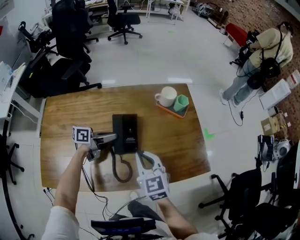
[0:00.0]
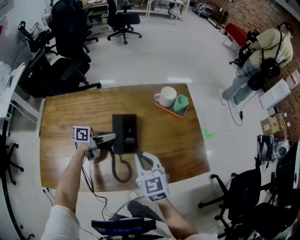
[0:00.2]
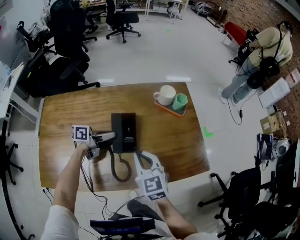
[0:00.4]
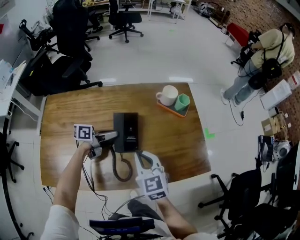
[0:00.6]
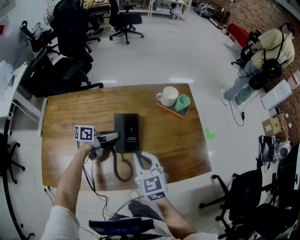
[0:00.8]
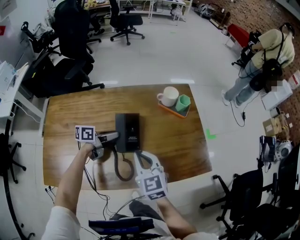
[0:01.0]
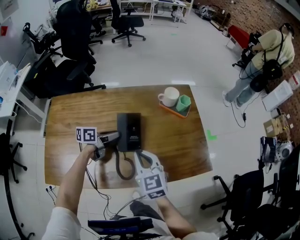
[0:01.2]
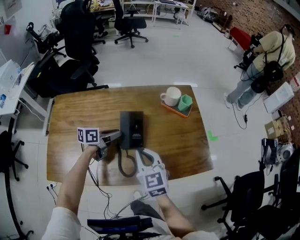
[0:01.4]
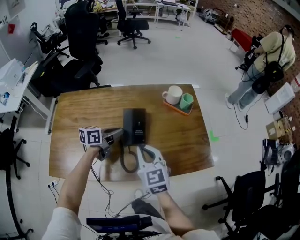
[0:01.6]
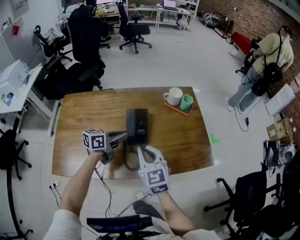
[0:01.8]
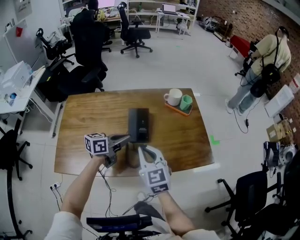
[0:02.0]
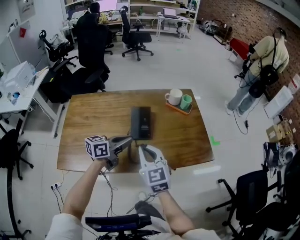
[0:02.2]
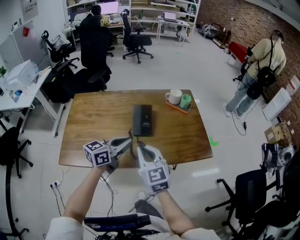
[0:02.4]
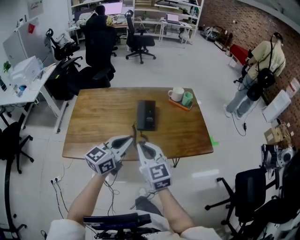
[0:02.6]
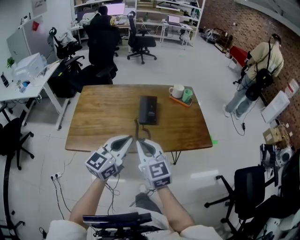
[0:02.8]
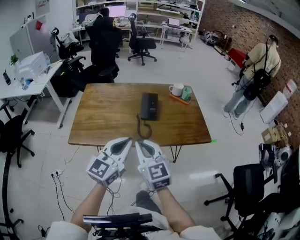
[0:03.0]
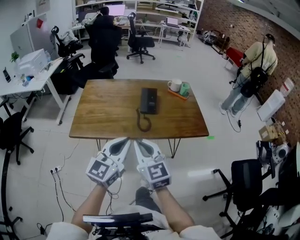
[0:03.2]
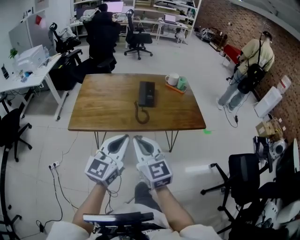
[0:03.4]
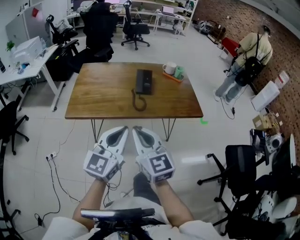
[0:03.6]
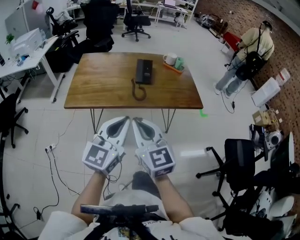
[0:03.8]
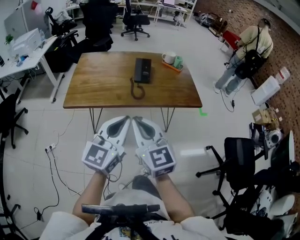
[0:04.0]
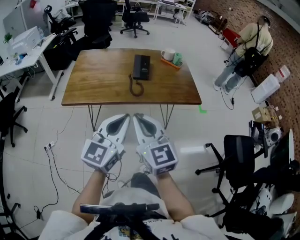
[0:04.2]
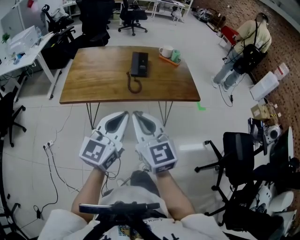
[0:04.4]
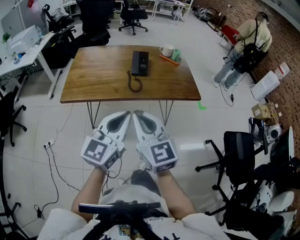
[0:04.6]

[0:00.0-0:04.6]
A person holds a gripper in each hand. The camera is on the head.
0:00.0 to 0:01.6: The left gripper changes place by some 5 cm.
0:01.6 to 0:03.0: The left gripper is displaced backward and upward by roughly 40 cm, and rolls clockwise, seen from behind, by some 40 degrees. The right gripper goes about 25 cm backward.
0:03.0 to 0:04.6: Both grippers travel together backward, about 15 cm.

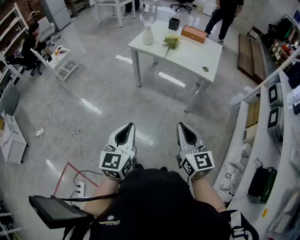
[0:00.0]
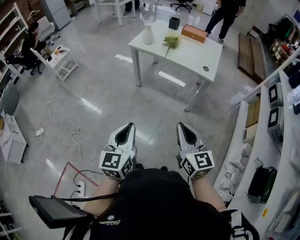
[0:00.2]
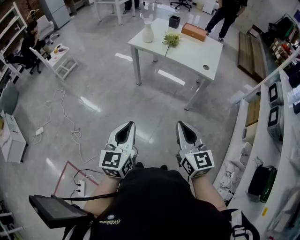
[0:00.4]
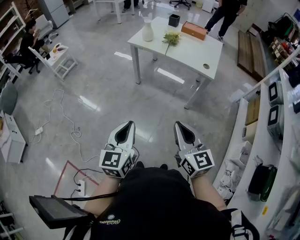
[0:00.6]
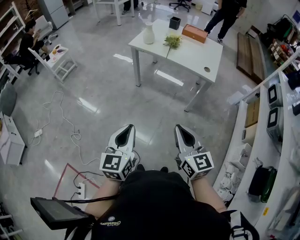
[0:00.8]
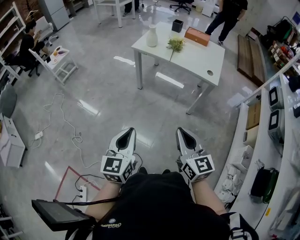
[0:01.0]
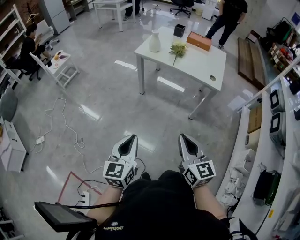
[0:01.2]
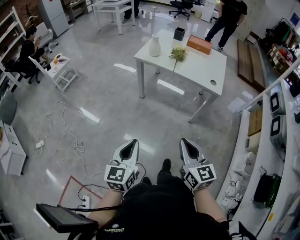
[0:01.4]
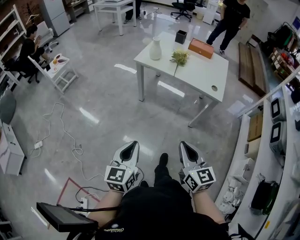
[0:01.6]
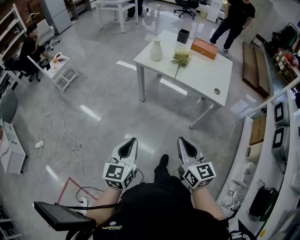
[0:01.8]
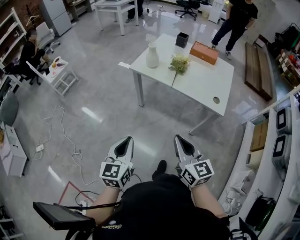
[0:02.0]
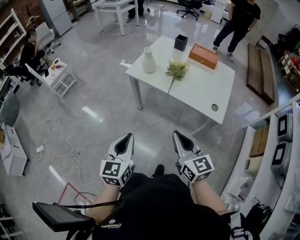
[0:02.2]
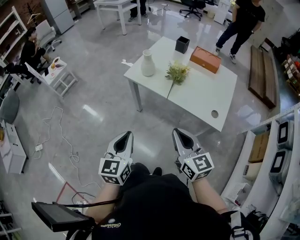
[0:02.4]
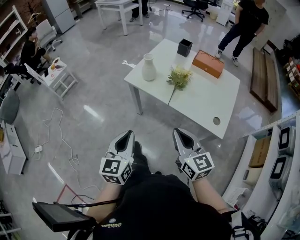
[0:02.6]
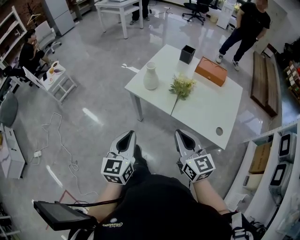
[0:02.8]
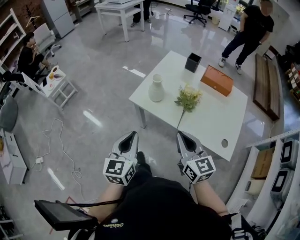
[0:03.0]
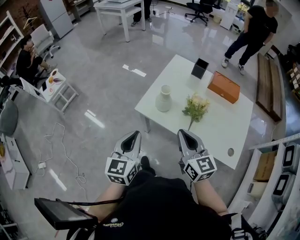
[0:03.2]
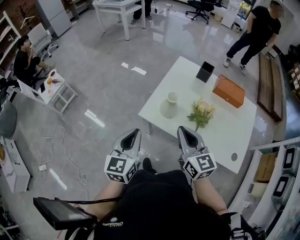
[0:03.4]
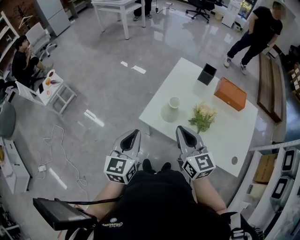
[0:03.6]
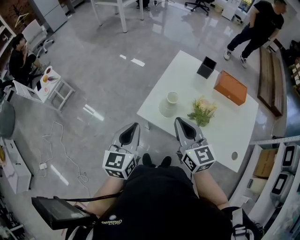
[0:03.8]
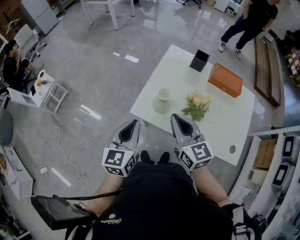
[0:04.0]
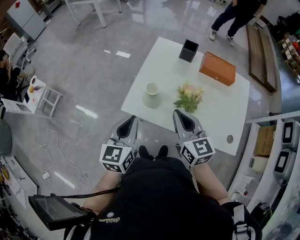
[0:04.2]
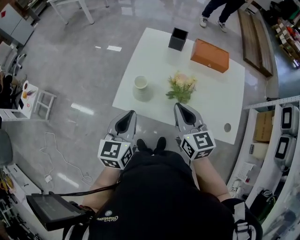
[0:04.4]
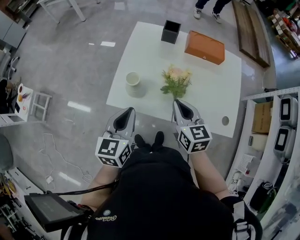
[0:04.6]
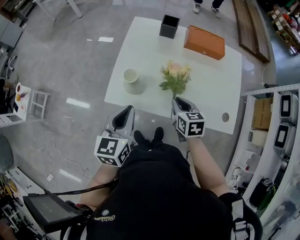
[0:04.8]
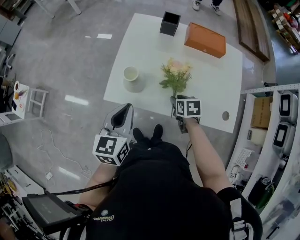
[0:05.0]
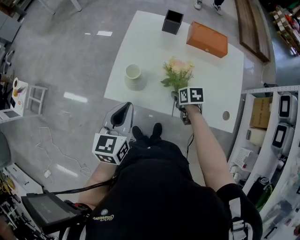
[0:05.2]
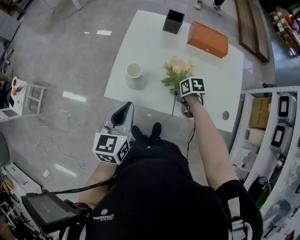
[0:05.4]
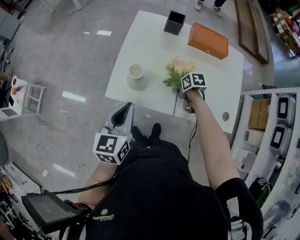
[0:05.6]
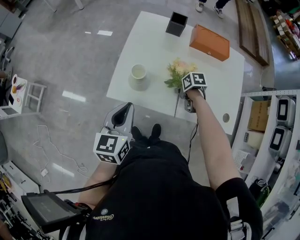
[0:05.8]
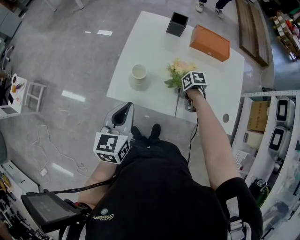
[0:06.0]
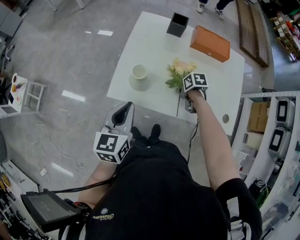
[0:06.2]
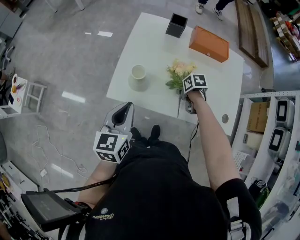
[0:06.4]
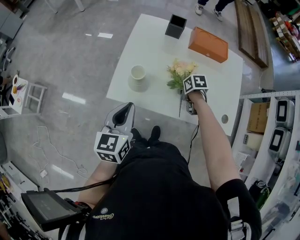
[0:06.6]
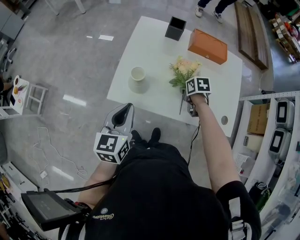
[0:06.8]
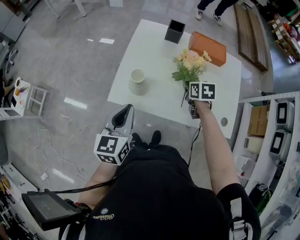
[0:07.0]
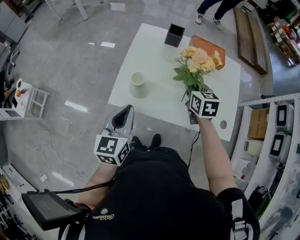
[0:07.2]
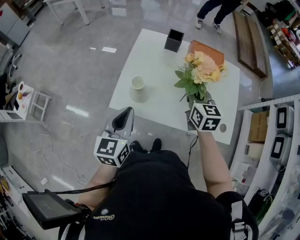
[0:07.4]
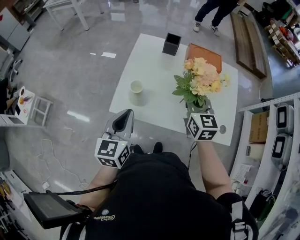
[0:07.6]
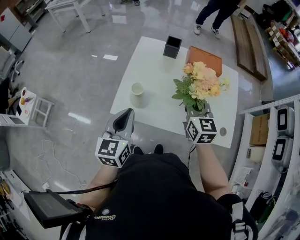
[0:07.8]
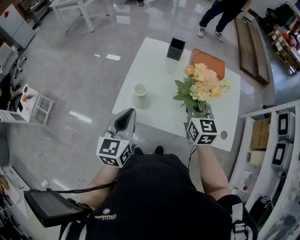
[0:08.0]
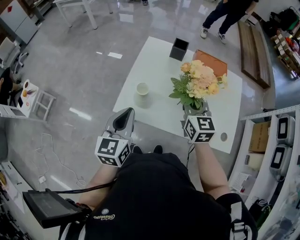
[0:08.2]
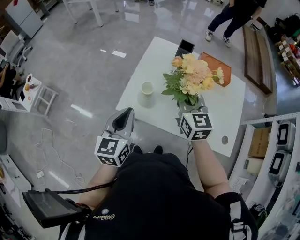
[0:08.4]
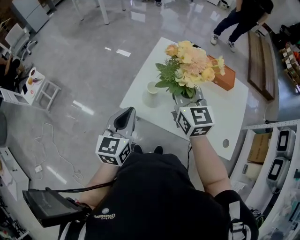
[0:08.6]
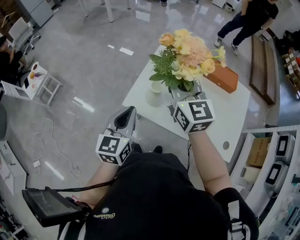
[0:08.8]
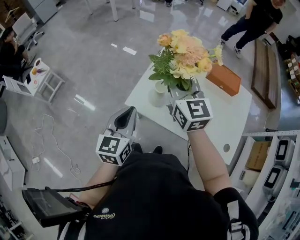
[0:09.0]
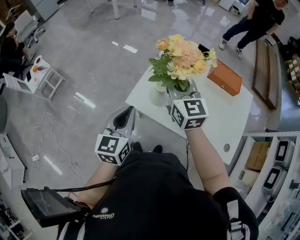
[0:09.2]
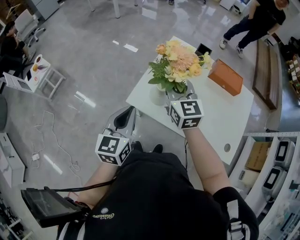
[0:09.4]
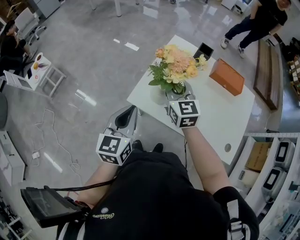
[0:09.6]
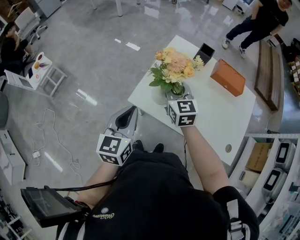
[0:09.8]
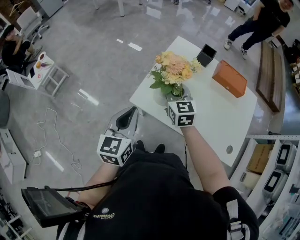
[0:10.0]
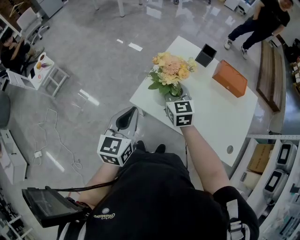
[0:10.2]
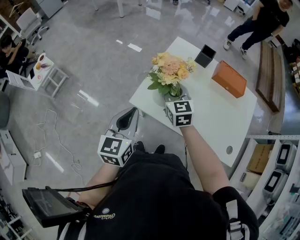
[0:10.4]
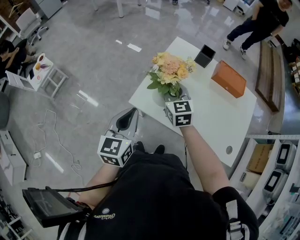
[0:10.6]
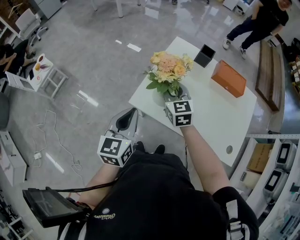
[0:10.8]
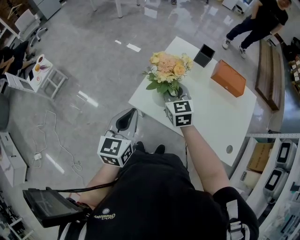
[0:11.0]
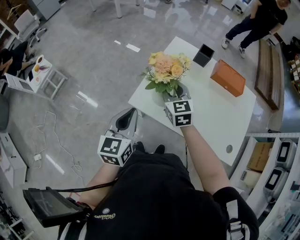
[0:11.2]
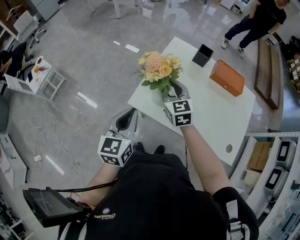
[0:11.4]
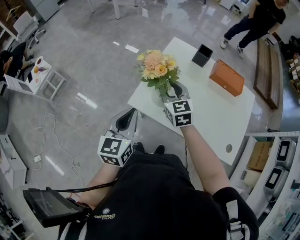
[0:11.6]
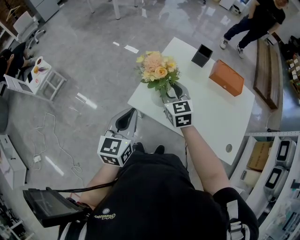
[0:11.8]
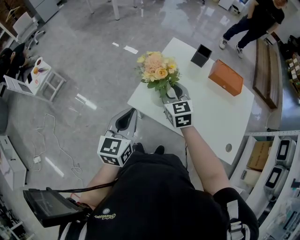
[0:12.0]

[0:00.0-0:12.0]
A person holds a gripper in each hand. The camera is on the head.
0:00.0 to 0:01.6: The grippers both shift forward and to the left by roughly 10 cm.
0:01.6 to 0:03.0: Both grippers are carried forward, roughly 50 cm.
0:03.0 to 0:04.4: The grippers both shift forward by some 20 cm.
0:04.4 to 0:06.0: The right gripper travels downward by about 25 cm, angles its fingers downward, by approximately 50 degrees, and opens and closes again.
0:06.0 to 0:07.6: The right gripper moves upward, roughly 25 cm, and angles its fingers upward, by roughly 50 degrees.
0:07.6 to 0:09.0: The left gripper travels to the left by some 5 cm, while the right gripper travels to the left and upward by roughly 20 cm, and rotates approximately 30 degrees.
0:09.0 to 0:10.4: The right gripper is displaced downward by approximately 15 cm.
0:10.4 to 0:12.0: The right gripper opens up.

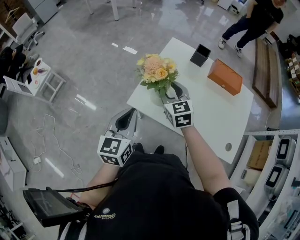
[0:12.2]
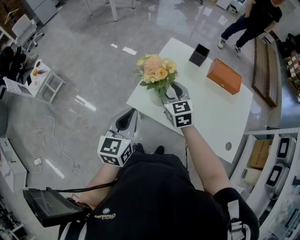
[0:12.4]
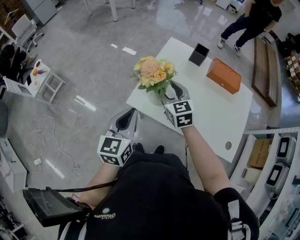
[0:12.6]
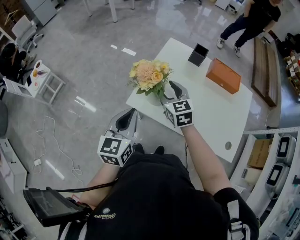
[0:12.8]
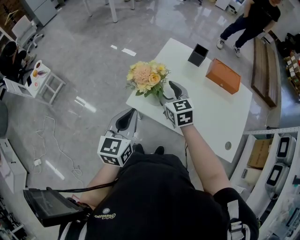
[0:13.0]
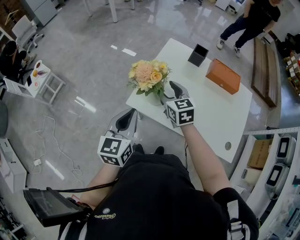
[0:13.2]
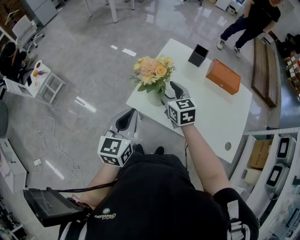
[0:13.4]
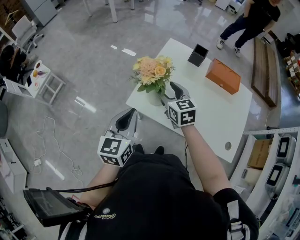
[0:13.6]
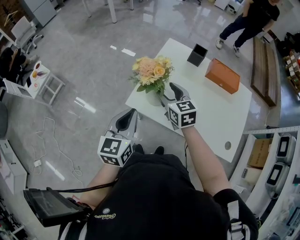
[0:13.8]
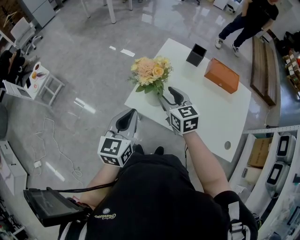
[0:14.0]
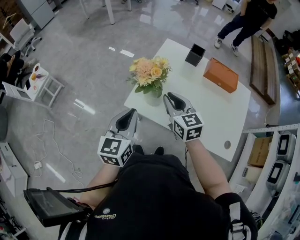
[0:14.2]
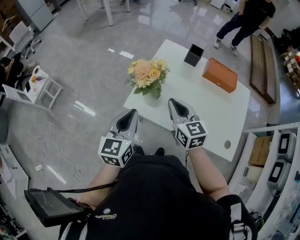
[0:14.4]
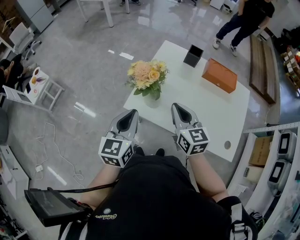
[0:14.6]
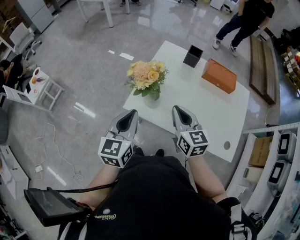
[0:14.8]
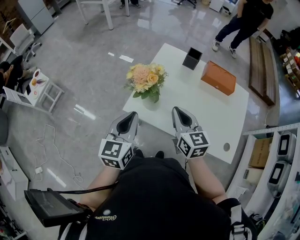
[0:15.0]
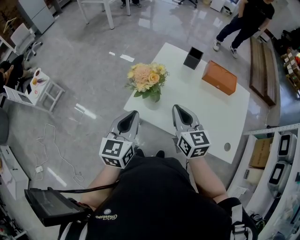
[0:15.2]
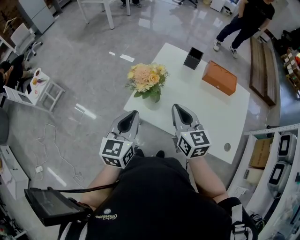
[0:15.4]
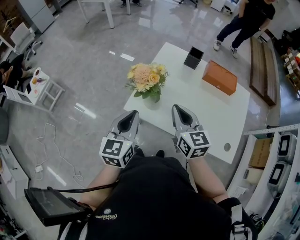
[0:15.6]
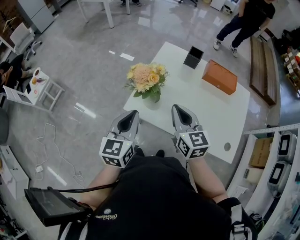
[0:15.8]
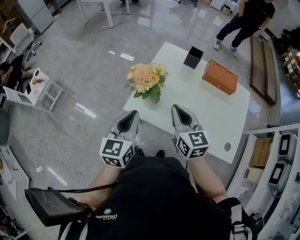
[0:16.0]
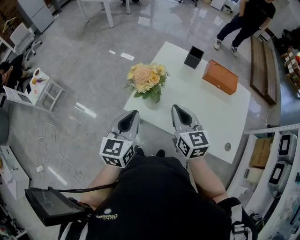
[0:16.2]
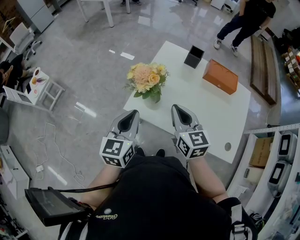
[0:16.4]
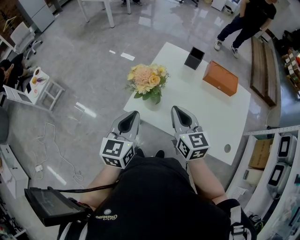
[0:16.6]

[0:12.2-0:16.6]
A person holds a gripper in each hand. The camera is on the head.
0:12.2 to 0:13.6: The grippers make only small movements.
0:13.6 to 0:15.2: The right gripper shifts approximately 10 cm backward, upward and to the right, and closes up.
0:15.2 to 0:16.6: Neither gripper changes place.

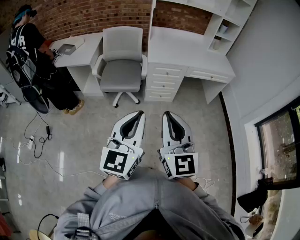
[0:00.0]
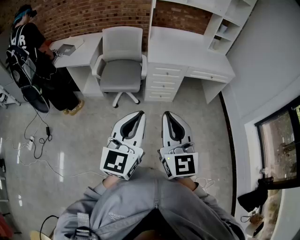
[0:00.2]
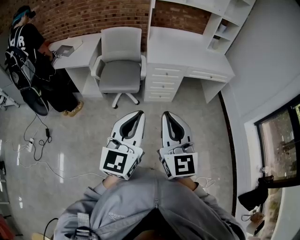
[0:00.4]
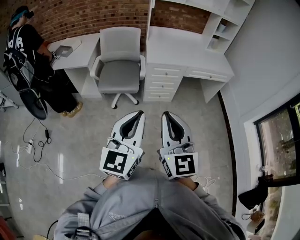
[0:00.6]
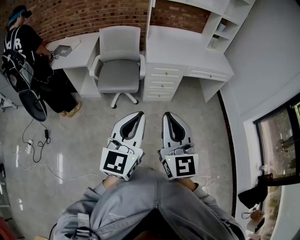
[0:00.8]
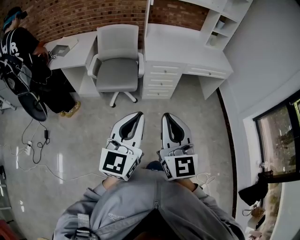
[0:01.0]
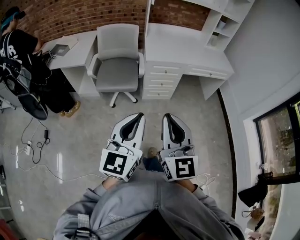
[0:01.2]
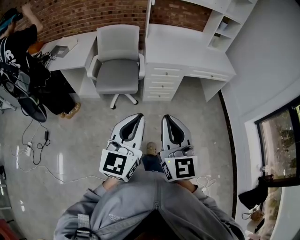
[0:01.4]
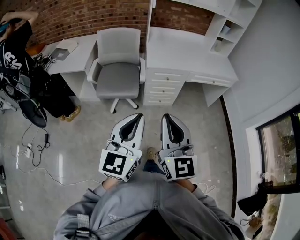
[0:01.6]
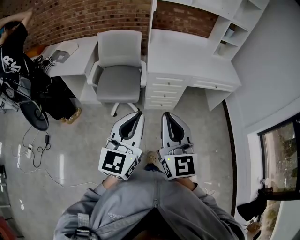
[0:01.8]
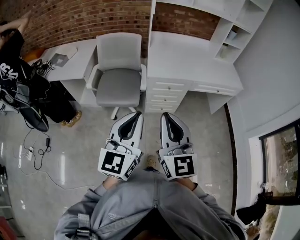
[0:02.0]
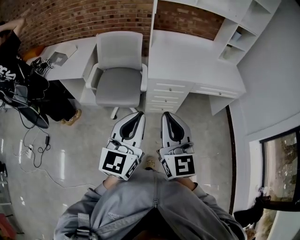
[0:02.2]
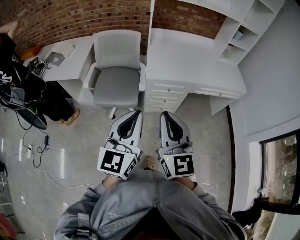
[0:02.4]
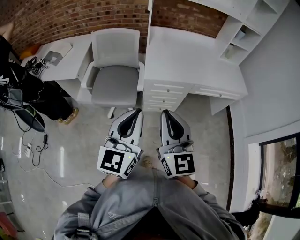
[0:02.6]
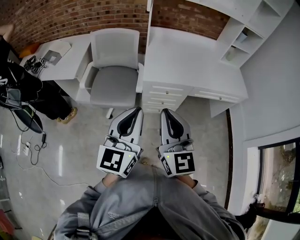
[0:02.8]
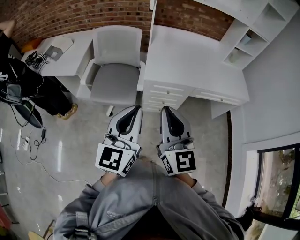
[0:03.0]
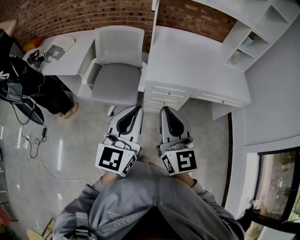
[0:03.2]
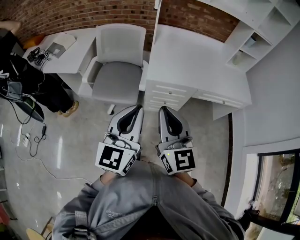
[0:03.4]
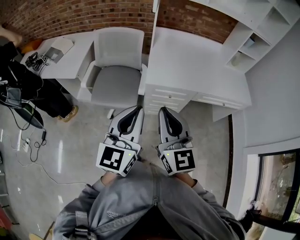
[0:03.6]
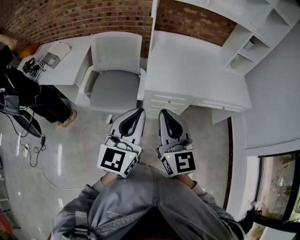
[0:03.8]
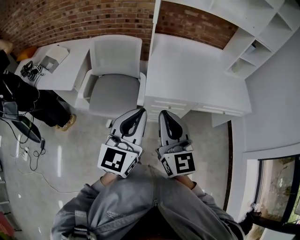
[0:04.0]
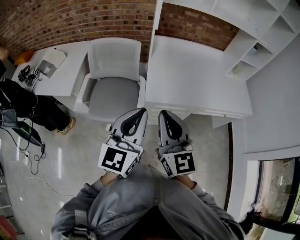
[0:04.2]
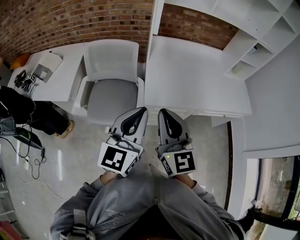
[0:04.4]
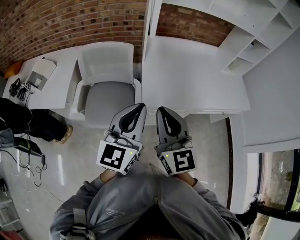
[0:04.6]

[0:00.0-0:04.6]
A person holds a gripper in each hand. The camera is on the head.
0:00.0 to 0:01.6: The two grippers go roughly 10 cm forward.
0:01.6 to 0:03.0: The grippers both shift forward by about 25 cm.
0:03.0 to 0:04.6: The grippers both shift forward by some 20 cm.
